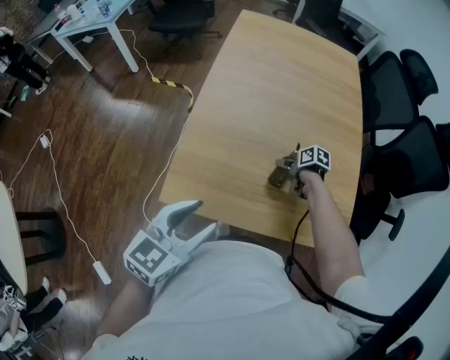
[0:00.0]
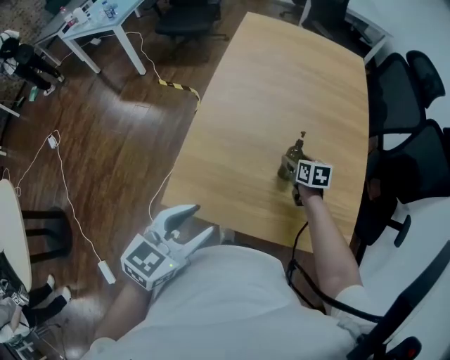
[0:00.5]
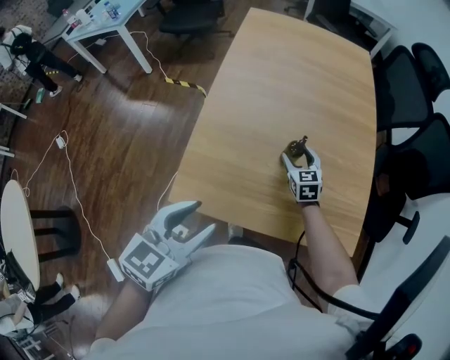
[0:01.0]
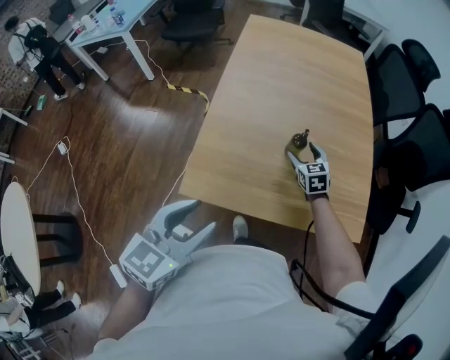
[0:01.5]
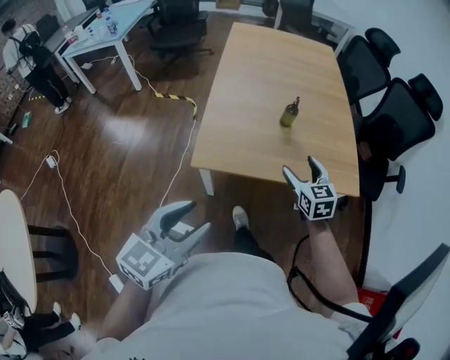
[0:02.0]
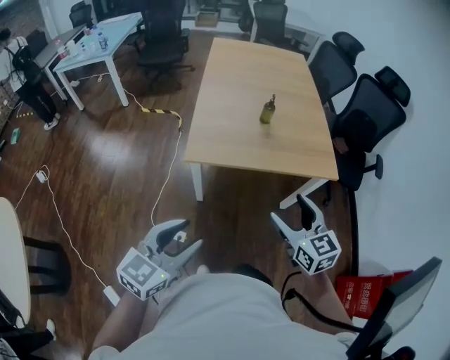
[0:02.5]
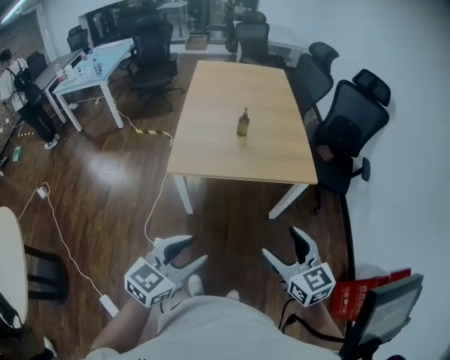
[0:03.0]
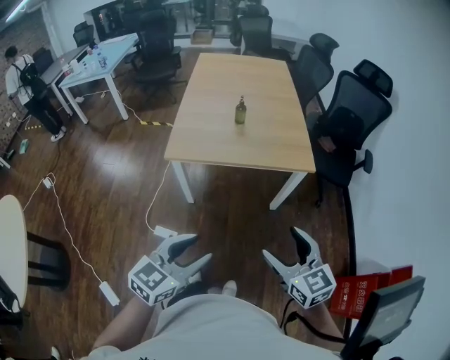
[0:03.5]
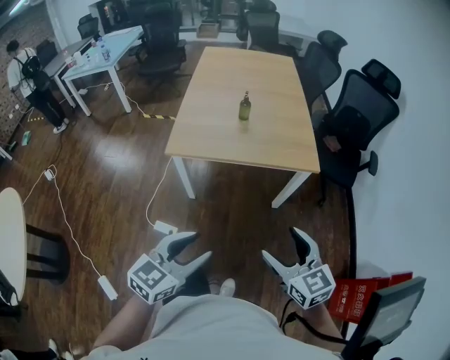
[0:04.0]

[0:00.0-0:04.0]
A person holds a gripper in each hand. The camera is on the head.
0:00.0 to 0:02.0: The left gripper moves roughly 20 cm, while the right gripper shifts by about 30 cm, and tips its fingers upward by roughly 30 degrees.
0:02.0 to 0:04.0: The right gripper shifts approximately 35 cm backward; the left gripper is displaced to the right and backward by about 20 cm.

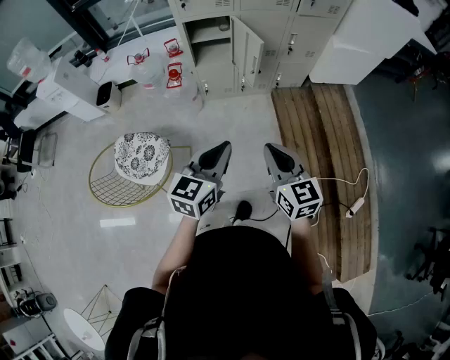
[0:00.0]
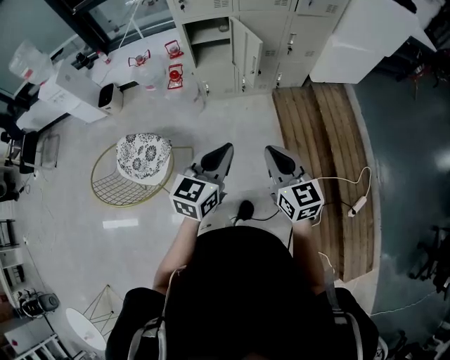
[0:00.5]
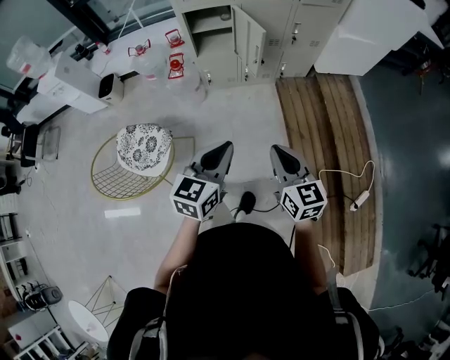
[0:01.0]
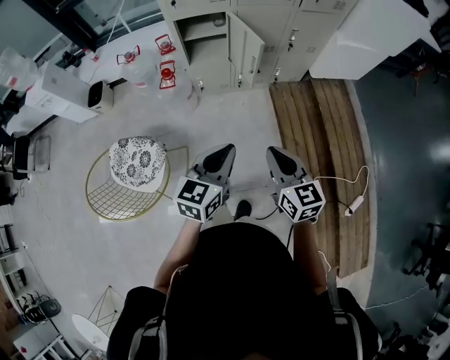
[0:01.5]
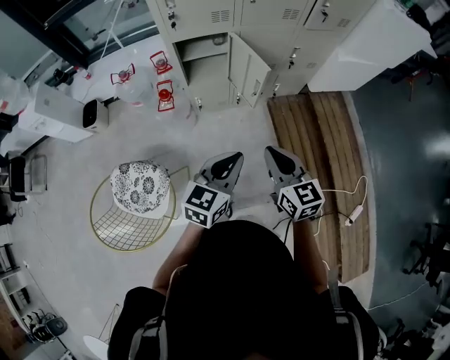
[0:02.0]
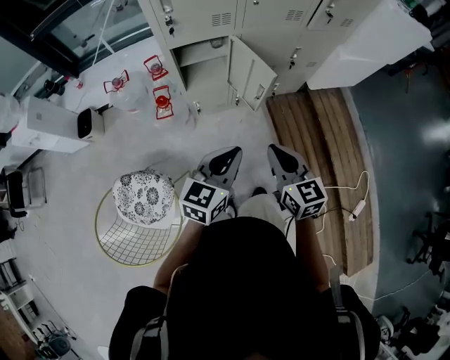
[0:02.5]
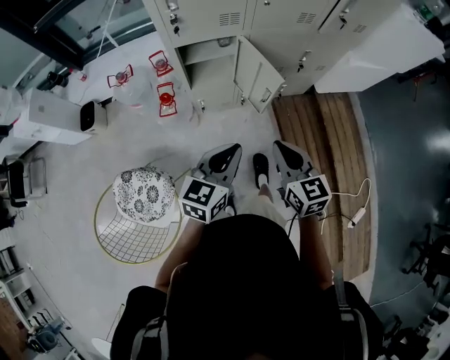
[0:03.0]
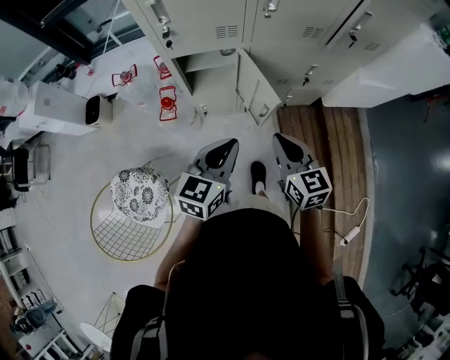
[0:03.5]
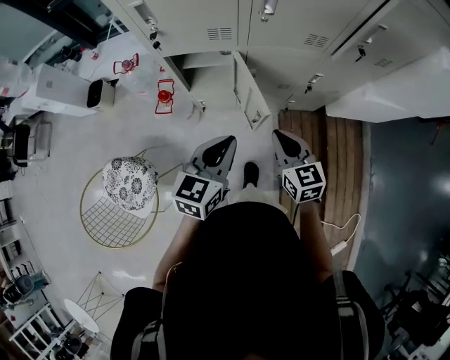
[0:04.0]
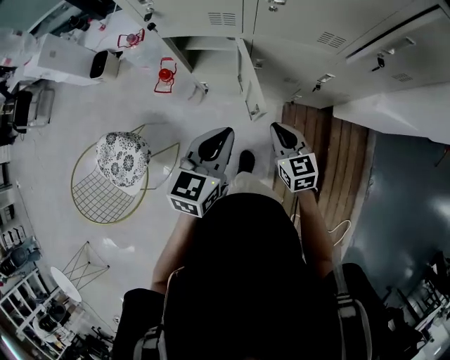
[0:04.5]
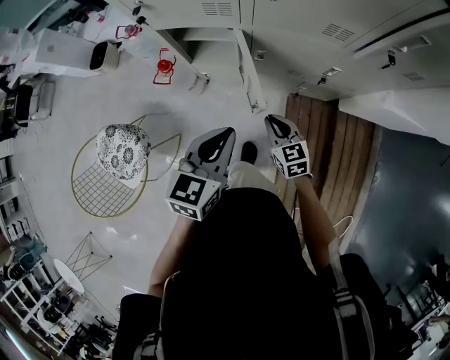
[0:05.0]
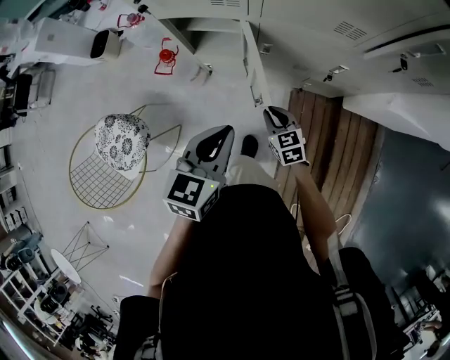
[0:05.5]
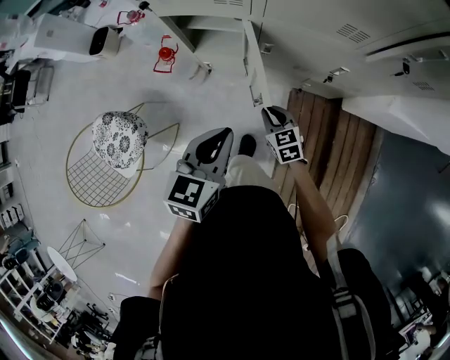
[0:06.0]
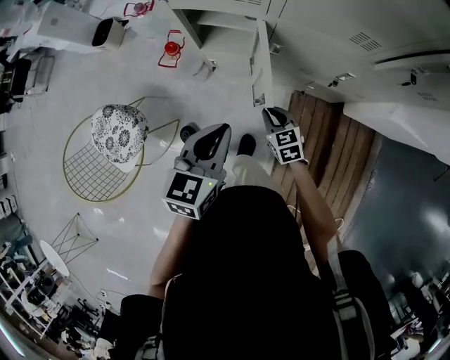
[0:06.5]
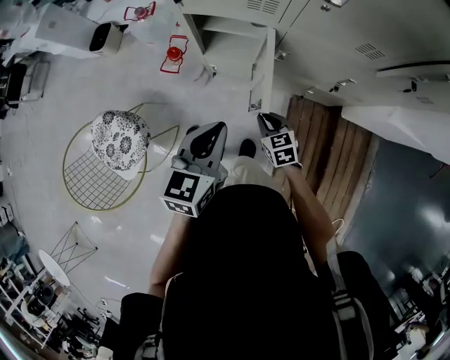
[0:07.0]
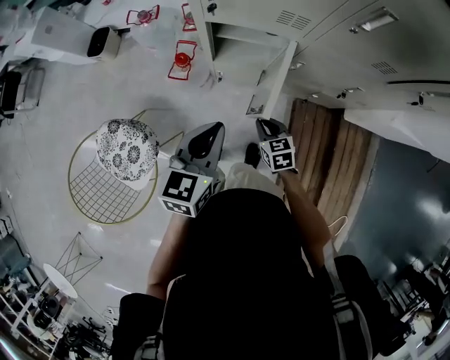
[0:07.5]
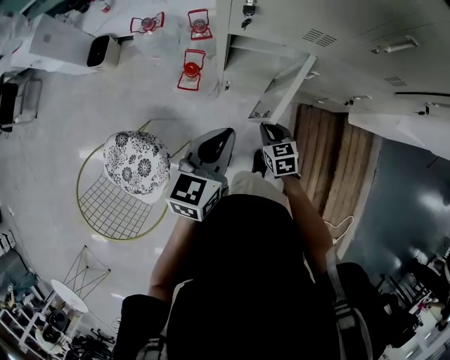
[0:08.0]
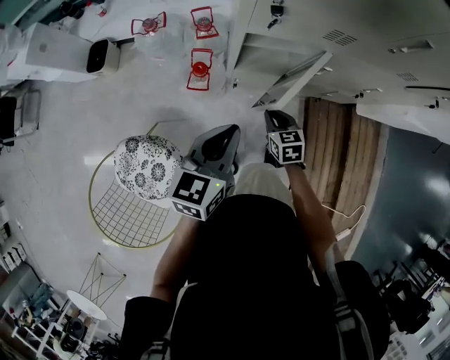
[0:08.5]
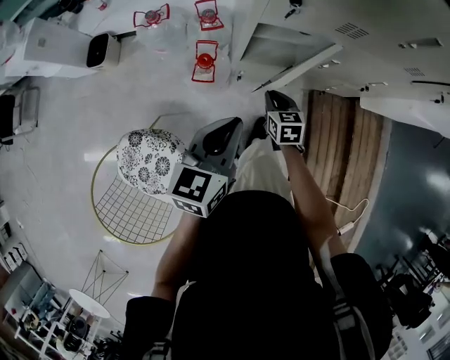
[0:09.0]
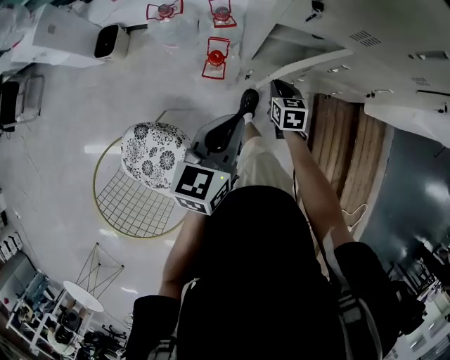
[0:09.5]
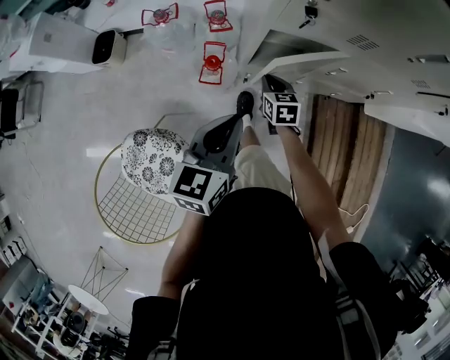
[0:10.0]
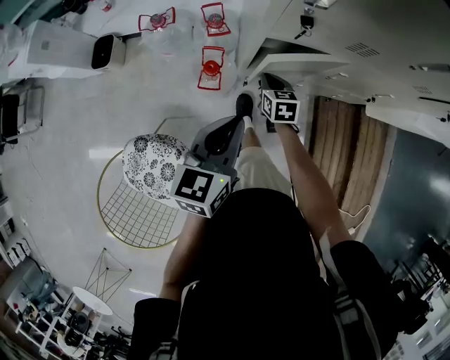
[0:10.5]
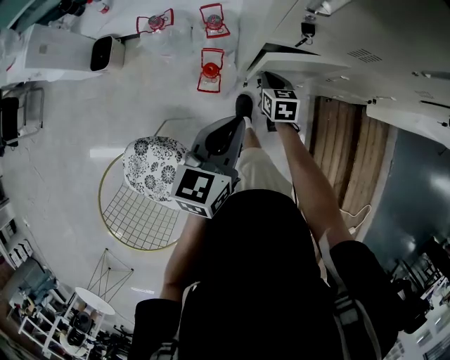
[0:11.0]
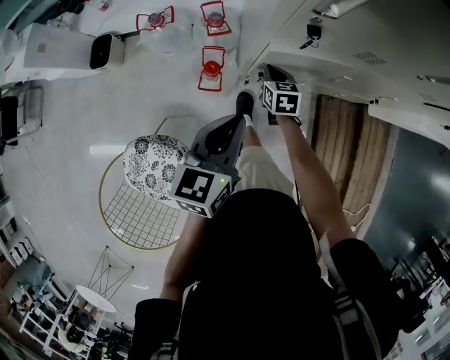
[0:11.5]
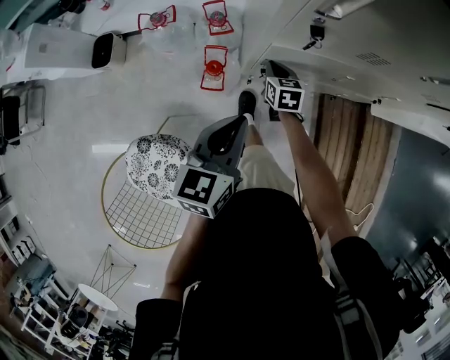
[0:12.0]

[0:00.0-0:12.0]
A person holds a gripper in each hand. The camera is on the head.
0:00.0 to 0:02.0: The two grippers go about 20 cm forward.
0:02.0 to 0:04.0: The two grippers go some 25 cm forward.
0:04.0 to 0:06.0: The left gripper heads downward, covering some 5 cm, while the right gripper moves downward, some 20 cm, and changes its angle by approximately 20 degrees.
0:06.0 to 0:08.0: Both grippers move to the left, about 20 cm.
0:08.0 to 0:10.0: The right gripper goes roughly 20 cm to the left and forward; the left gripper heads to the left, covering some 10 cm.
0:10.0 to 0:12.0: The left gripper goes some 5 cm forward. The right gripper is displaced forward by roughly 10 cm.

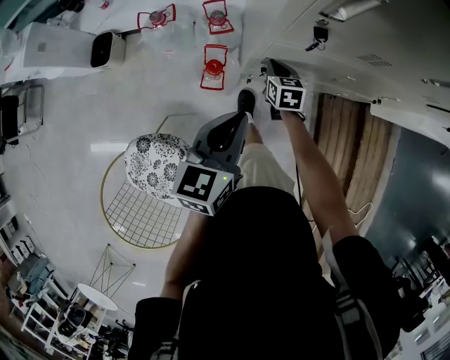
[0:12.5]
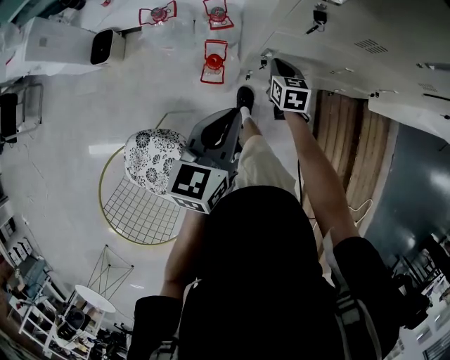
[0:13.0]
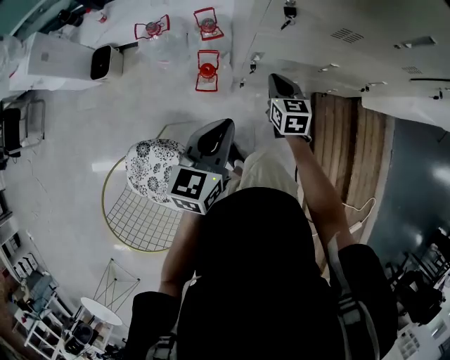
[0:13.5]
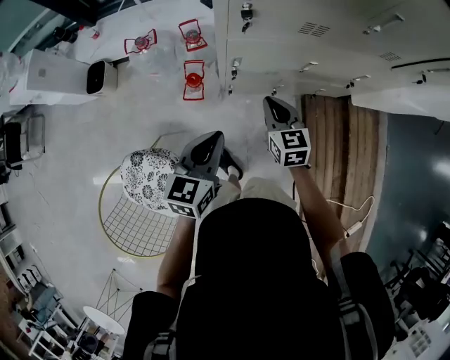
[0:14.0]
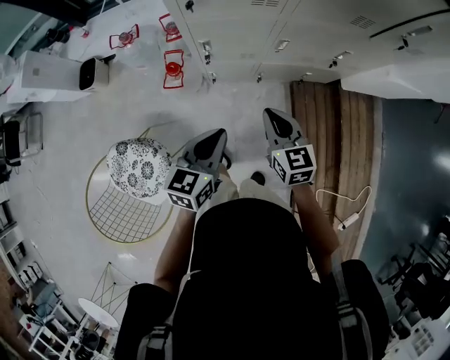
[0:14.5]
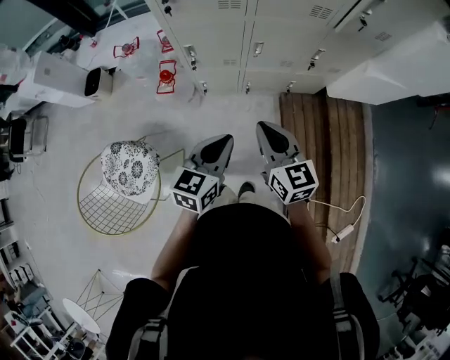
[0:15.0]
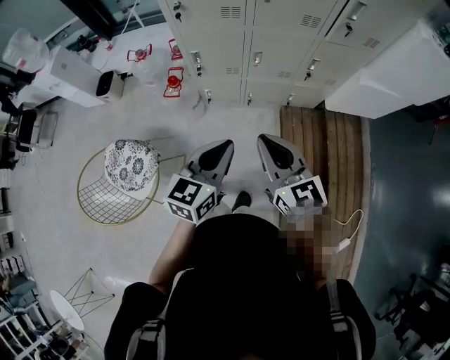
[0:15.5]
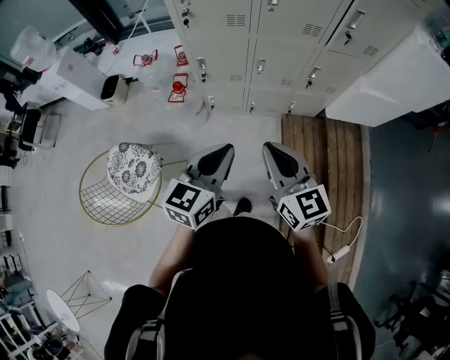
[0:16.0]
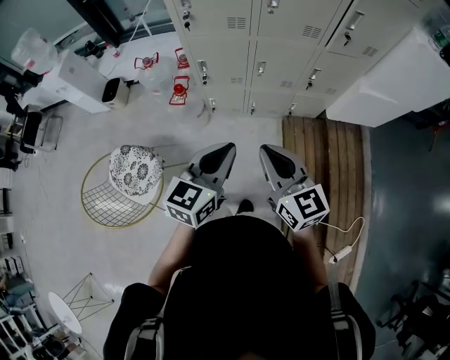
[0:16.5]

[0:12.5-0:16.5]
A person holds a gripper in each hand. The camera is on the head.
0:12.5 to 0:14.5: The left gripper moves to the right and backward, approximately 20 cm; the right gripper heads backward, to the right and upward, covering some 35 cm.
0:14.5 to 0:16.5: The right gripper heads backward and upward, covering some 30 cm, and swivels some 20 degrees; the left gripper moves backward, upward and to the right, about 25 cm.

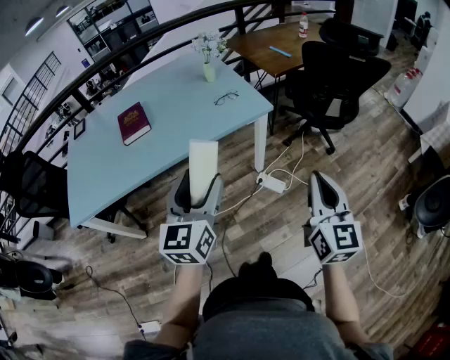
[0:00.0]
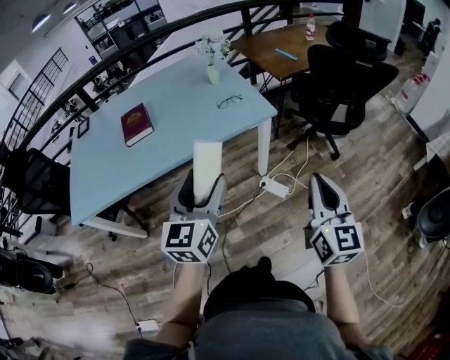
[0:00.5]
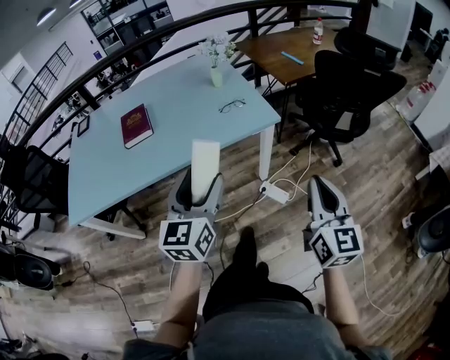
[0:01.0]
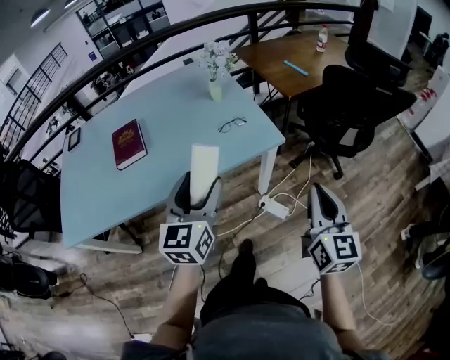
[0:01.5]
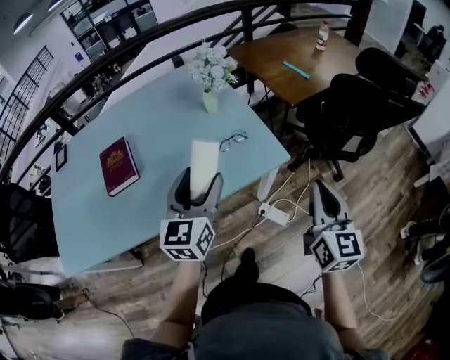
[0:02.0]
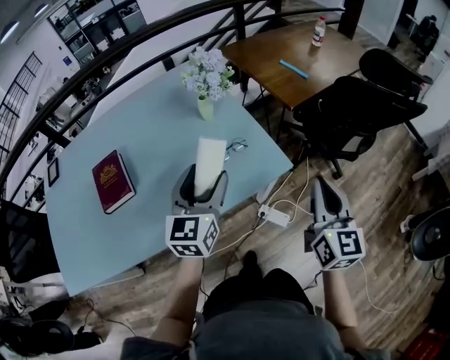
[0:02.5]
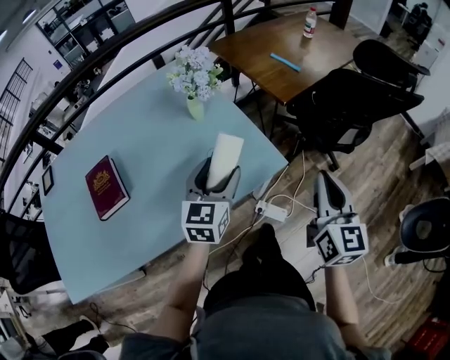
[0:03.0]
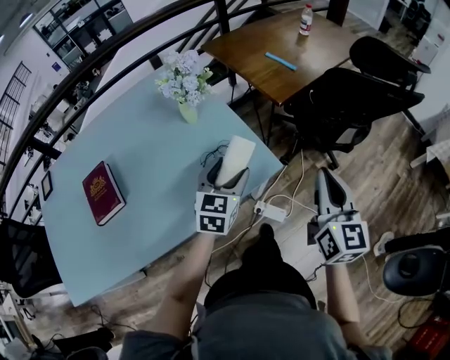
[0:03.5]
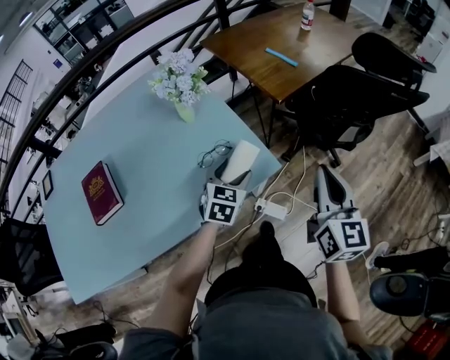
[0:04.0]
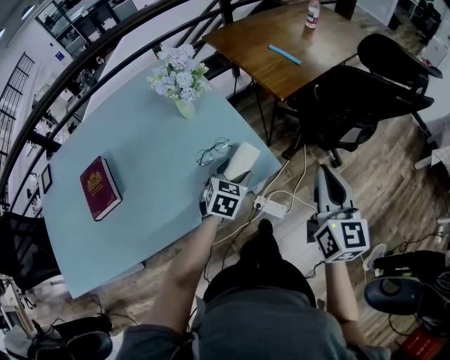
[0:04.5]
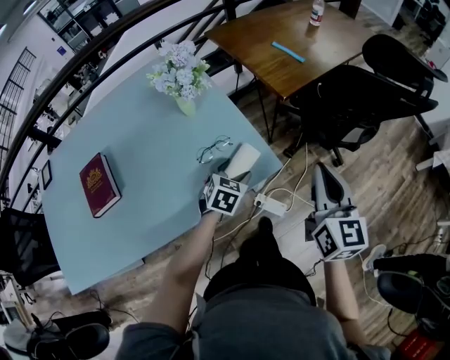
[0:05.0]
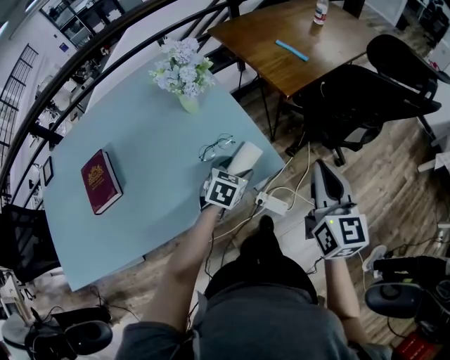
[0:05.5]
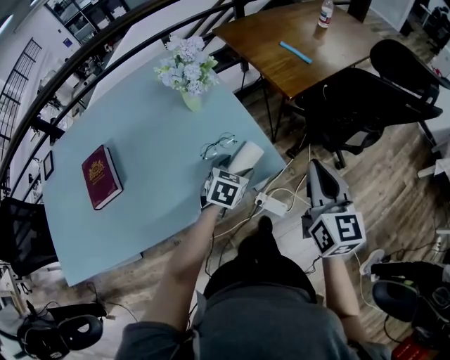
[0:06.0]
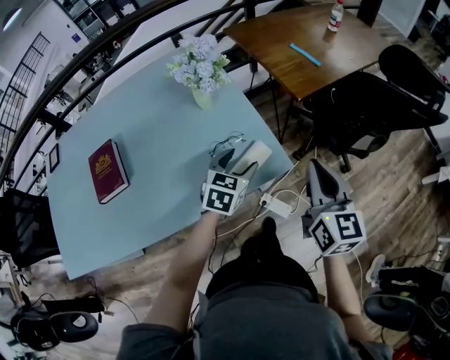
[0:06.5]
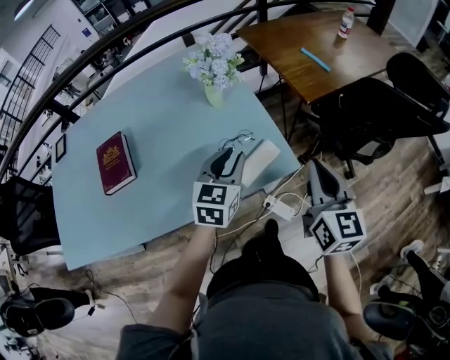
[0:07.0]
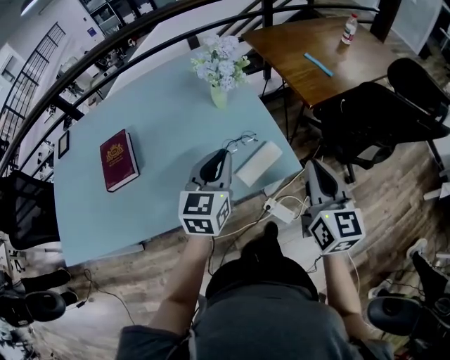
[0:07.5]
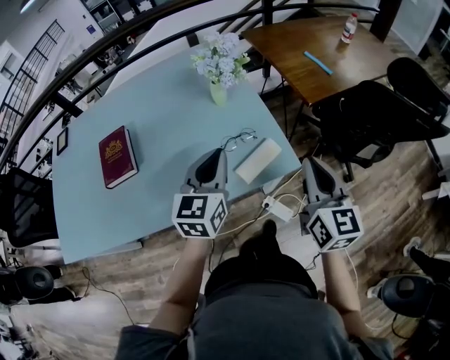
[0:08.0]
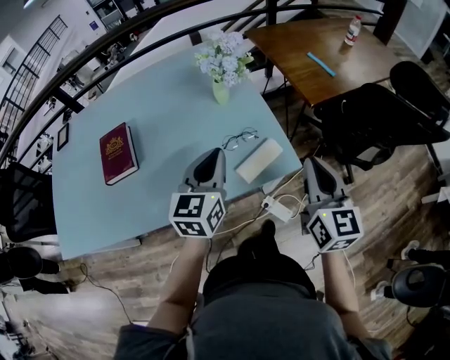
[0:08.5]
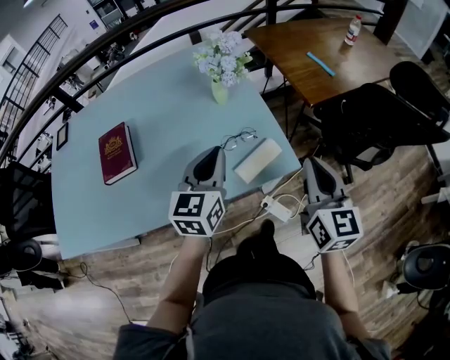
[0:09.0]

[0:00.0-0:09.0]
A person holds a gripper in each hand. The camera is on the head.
0:00.0 to 0:02.0: Both grippers travel together forward, about 30 cm.
0:02.0 to 0:04.5: The left gripper moves downward, forward and to the right, roughly 30 cm, and angles its fingers downward, by about 40 degrees, while the right gripper is displaced forward by about 10 cm.
0:04.5 to 0:07.0: The left gripper travels upward and to the left by roughly 15 cm, swivels roughly 30 degrees, and closes up. Meanwhile the right gripper is displaced to the left by some 5 cm.
0:07.0 to 0:09.0: The left gripper moves upward, approximately 5 cm.
